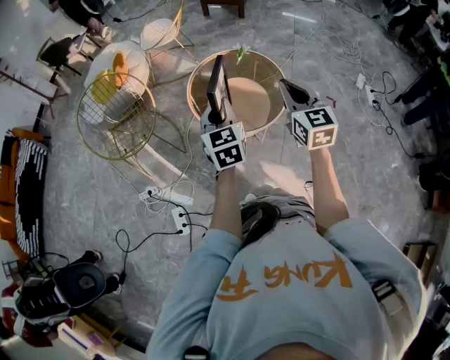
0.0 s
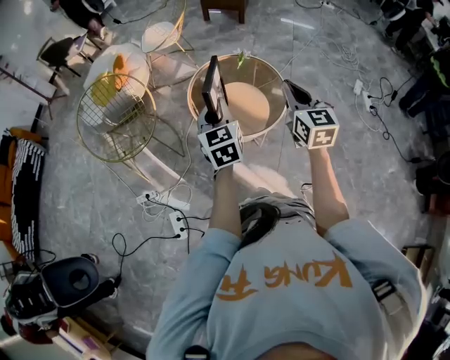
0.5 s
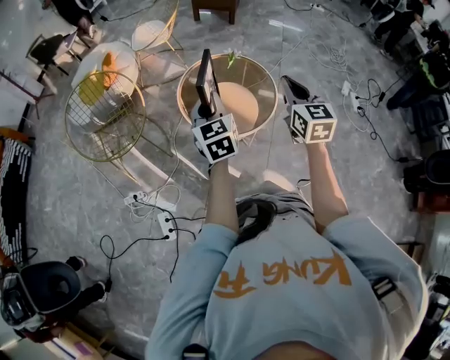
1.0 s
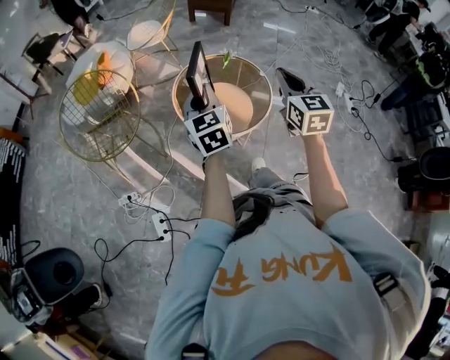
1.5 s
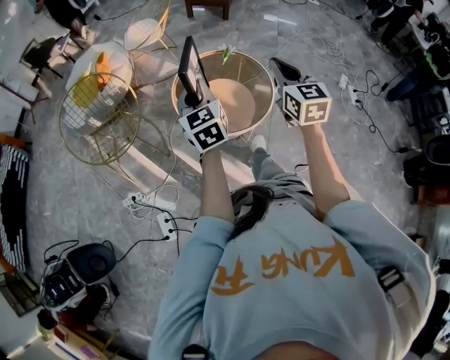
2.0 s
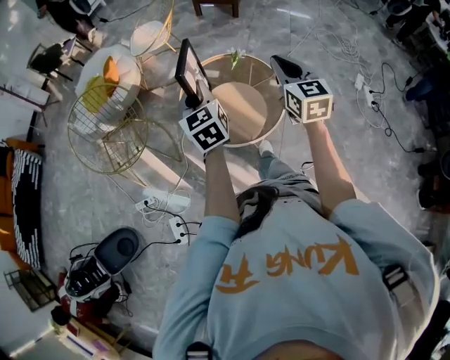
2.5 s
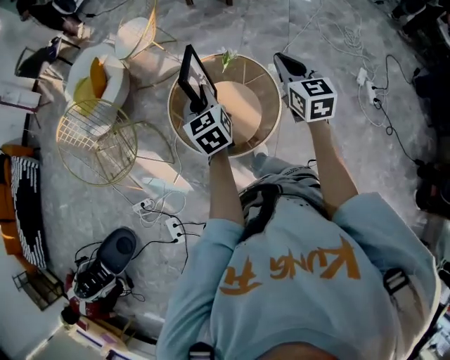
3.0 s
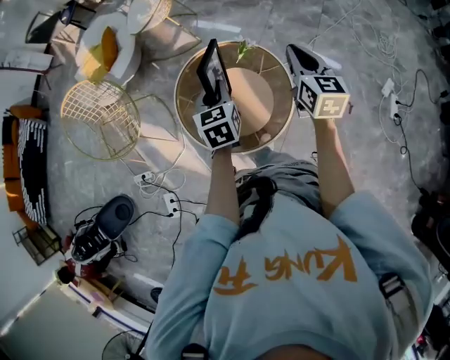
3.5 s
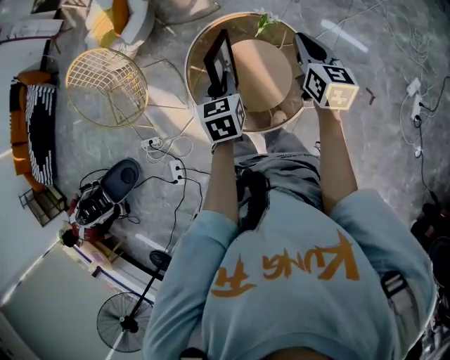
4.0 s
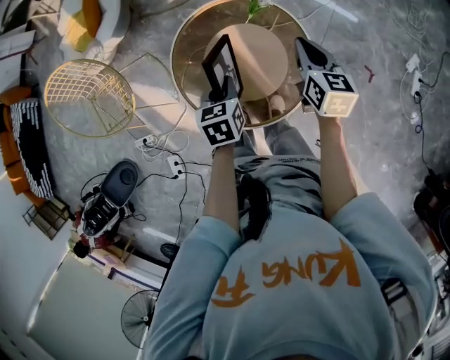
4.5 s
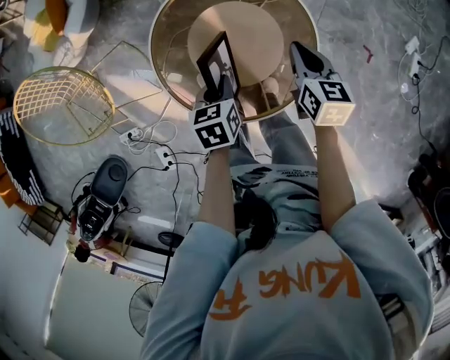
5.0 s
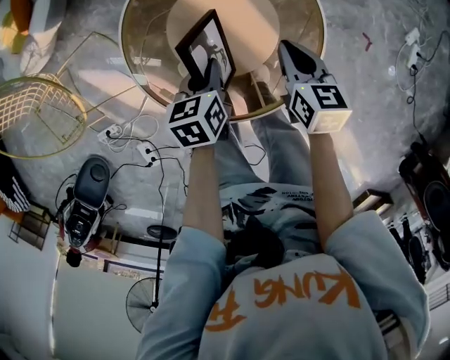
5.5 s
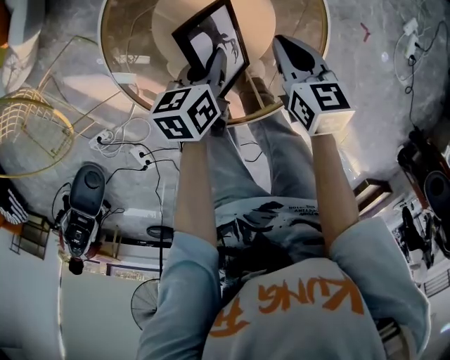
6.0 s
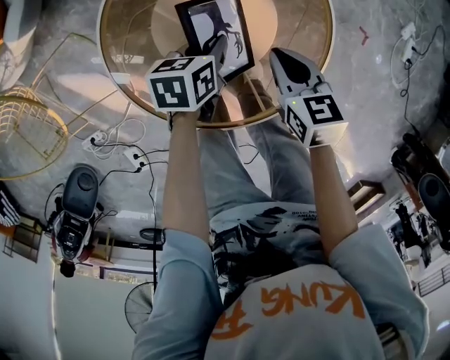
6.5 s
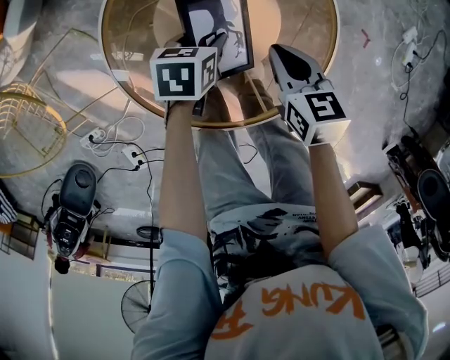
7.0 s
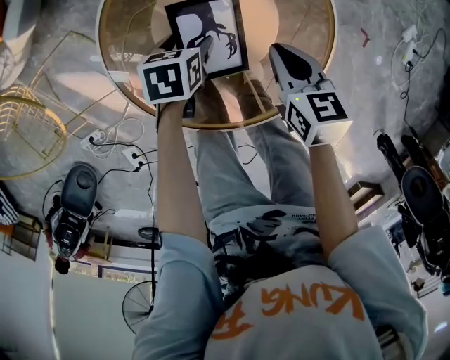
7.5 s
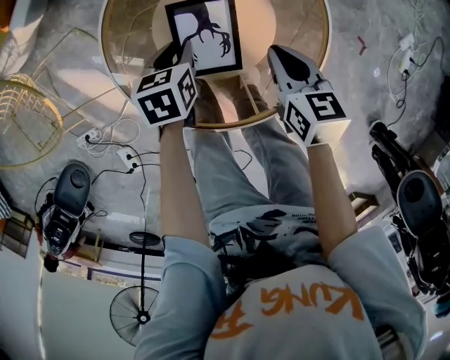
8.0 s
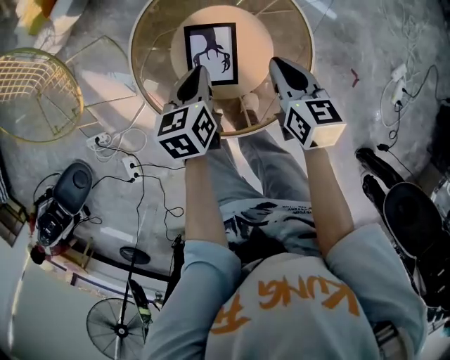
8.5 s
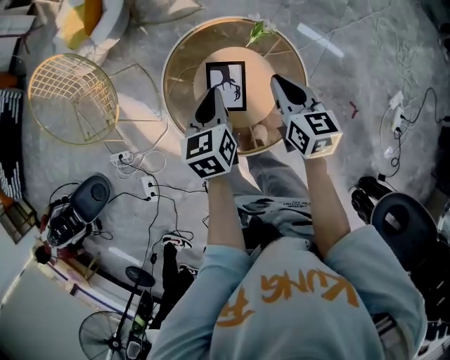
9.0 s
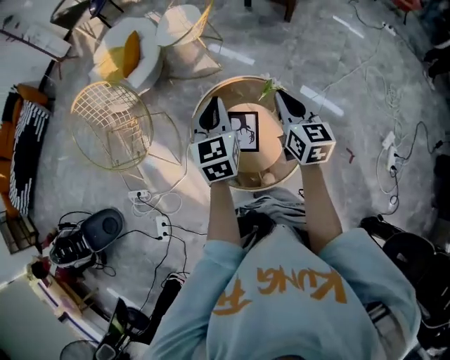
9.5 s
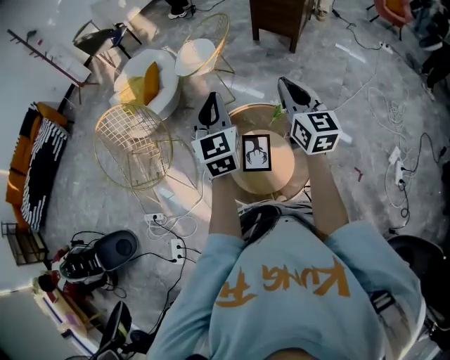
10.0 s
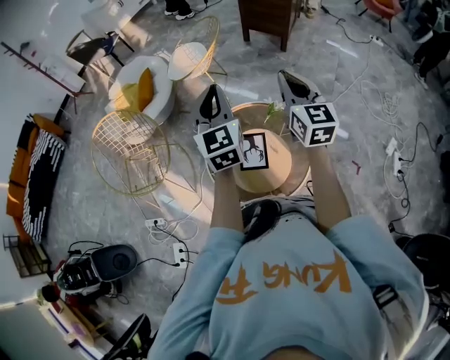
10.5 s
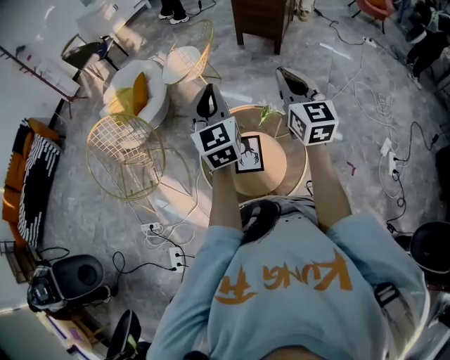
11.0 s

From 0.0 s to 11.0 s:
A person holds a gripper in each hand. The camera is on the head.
From 0.0 s to 2.0 s: The left gripper shifts by about 5 cm.
From 2.0 s to 3.5 s: The right gripper travels forward and to the right by about 35 cm. Meanwhile the left gripper moves forward, to the right and downward, some 35 cm, and rotates approximately 20 degrees.
From 3.5 s to 5.5 s: Both grippers travel together downward, about 35 cm. The left gripper turns by some 30 degrees. Meanwhile the right gripper swivels some 30 degrees.
From 5.5 s to 7.5 s: The left gripper shifts approximately 10 cm downward, and opens its fingers.
From 7.5 s to 9.0 s: The grippers both shift upward by some 30 cm. The right gripper turns by approximately 20 degrees; the left gripper turns by approximately 40 degrees, and closes its fingers.
From 9.0 s to 11.0 s: Both grippers move upward, some 30 cm. The right gripper swivels some 40 degrees, while the left gripper tilts its fingers about 30 degrees upward.

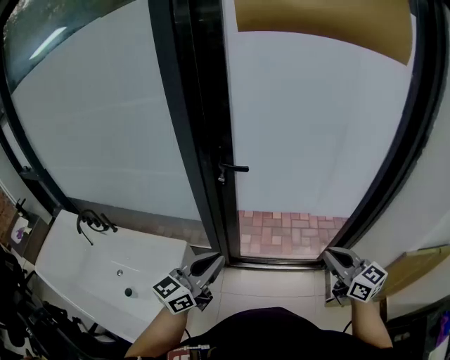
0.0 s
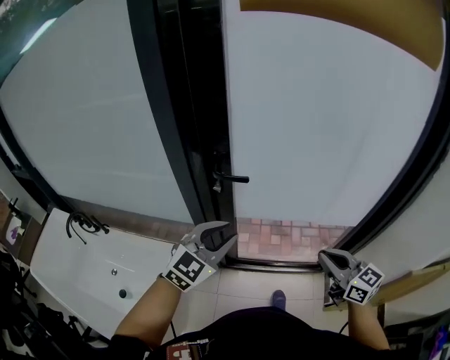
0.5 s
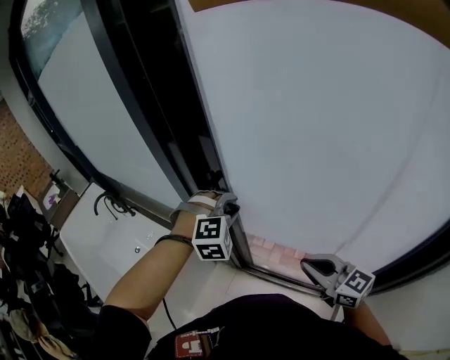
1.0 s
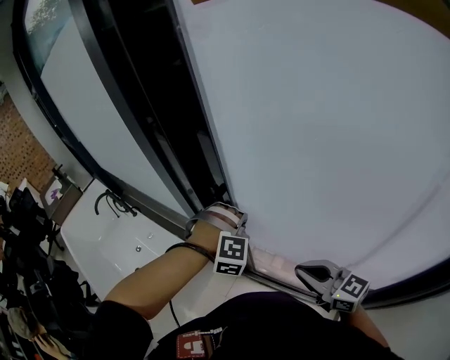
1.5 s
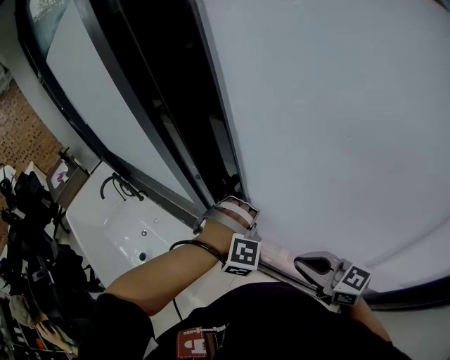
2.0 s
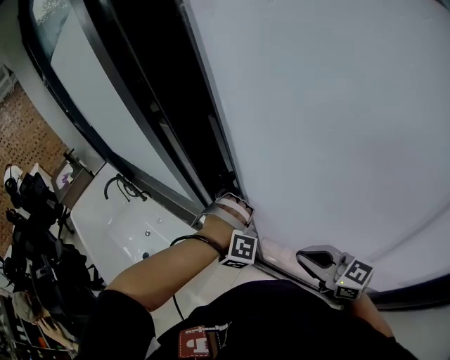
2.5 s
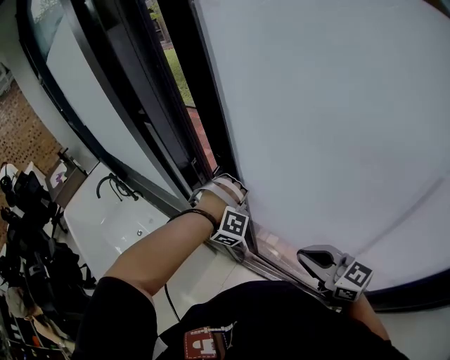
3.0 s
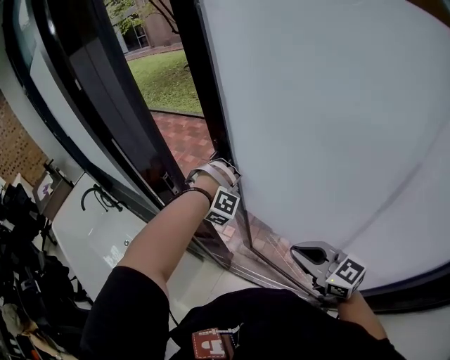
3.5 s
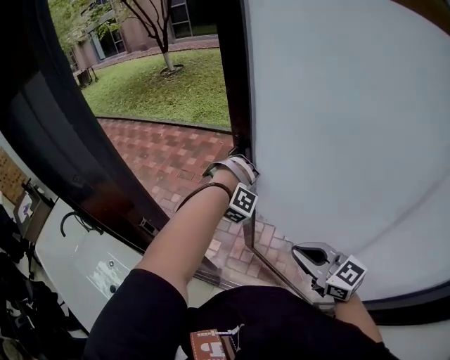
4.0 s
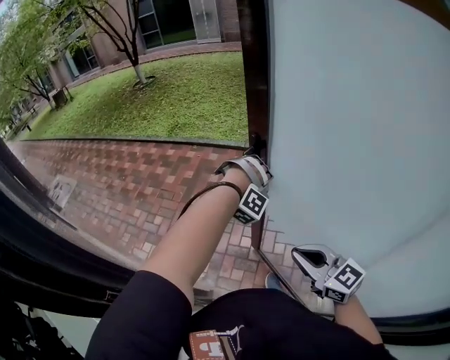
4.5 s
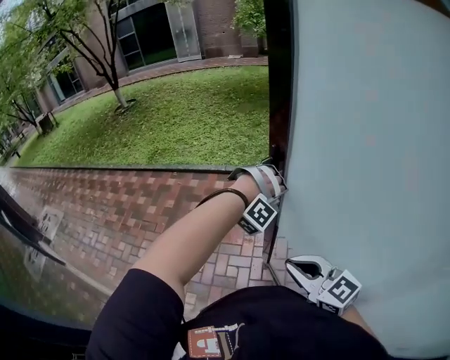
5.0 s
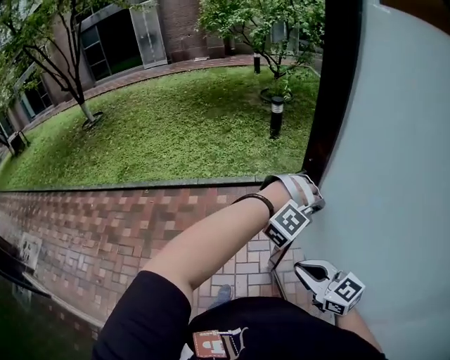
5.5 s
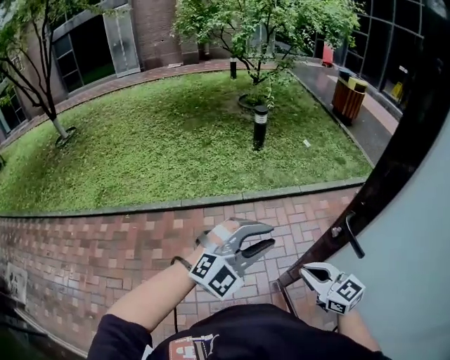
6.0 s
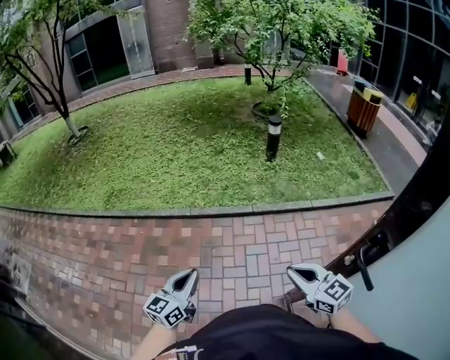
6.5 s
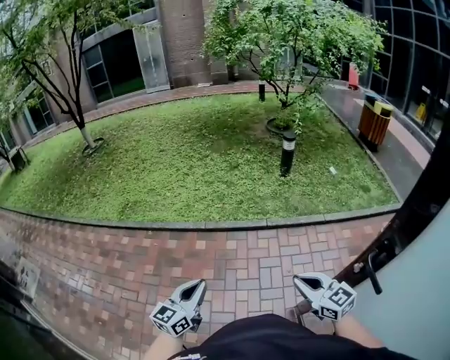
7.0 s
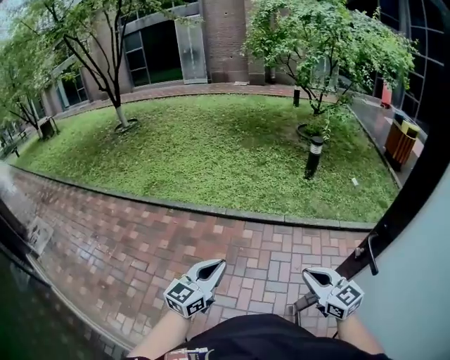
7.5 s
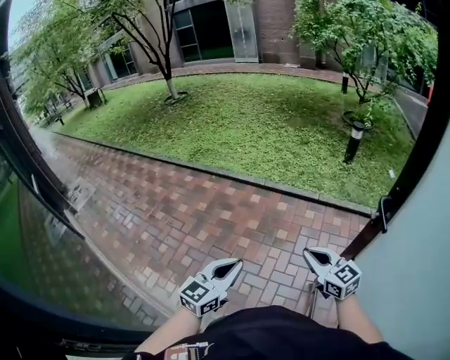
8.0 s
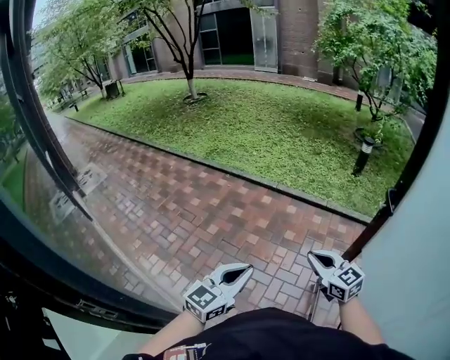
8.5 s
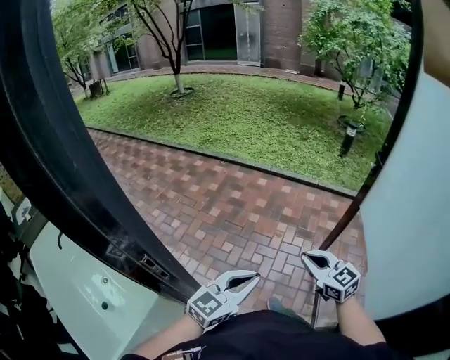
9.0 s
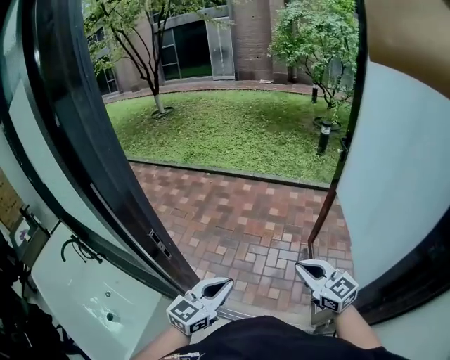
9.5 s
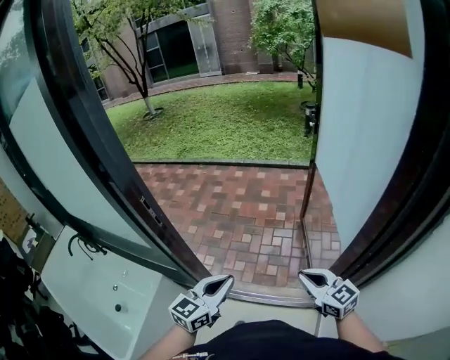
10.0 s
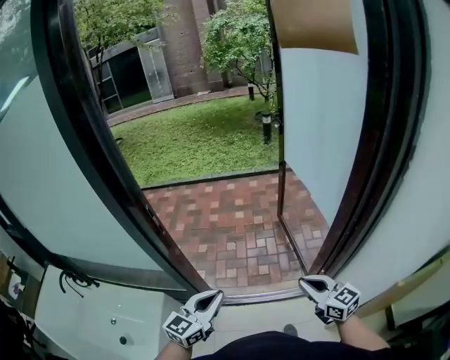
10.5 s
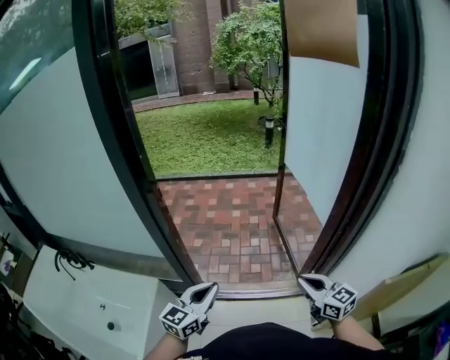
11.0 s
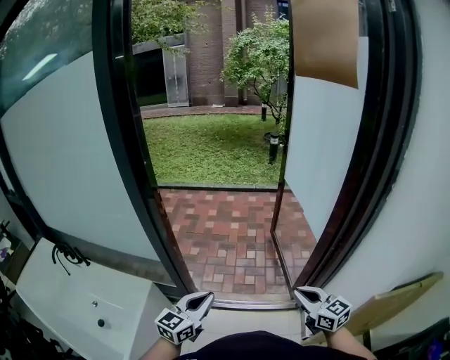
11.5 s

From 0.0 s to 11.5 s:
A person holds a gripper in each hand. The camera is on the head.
From 0.0 s to 2.0 s: The left gripper shifts by approximately 40 cm, points its fingers roughly 50 degrees further downward, and opens, then closes once more. Meanwhile the right gripper moves roughly 35 cm, and turns by some 50 degrees.
From 2.0 s to 4.0 s: The left gripper travels to the right and forward by about 30 cm, and turns by about 20 degrees. The right gripper goes about 20 cm to the right and forward.
From 4.0 s to 6.0 s: The pair of grippers is taken approximately 50 cm. The left gripper changes its angle by roughly 80 degrees, and opens up. The right gripper turns by roughly 40 degrees.
From 6.0 s to 7.5 s: The left gripper travels to the left by roughly 20 cm, rolls counterclockwise, seen from behind, by about 60 degrees, and closes up; the right gripper heads to the left, covering about 5 cm, and reaches roughly 10 cm forward, then returns.
From 7.5 s to 9.5 s: Both grippers are carried backward, roughly 60 cm.
From 9.5 s to 11.5 s: The two grippers go some 30 cm backward. The right gripper swivels roughly 20 degrees.

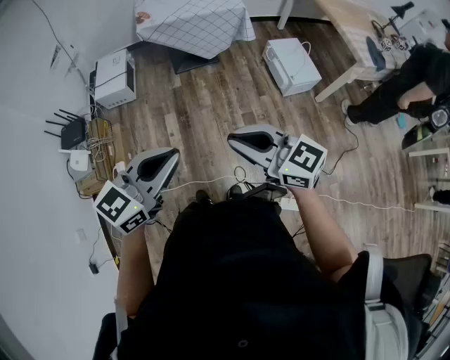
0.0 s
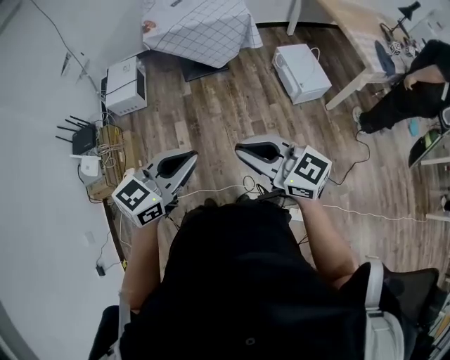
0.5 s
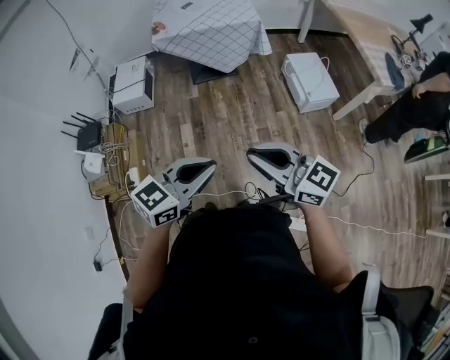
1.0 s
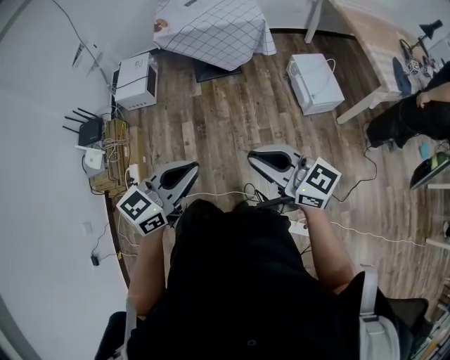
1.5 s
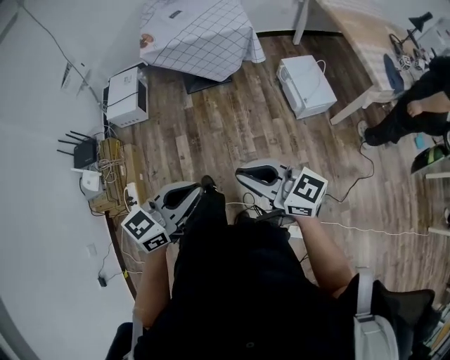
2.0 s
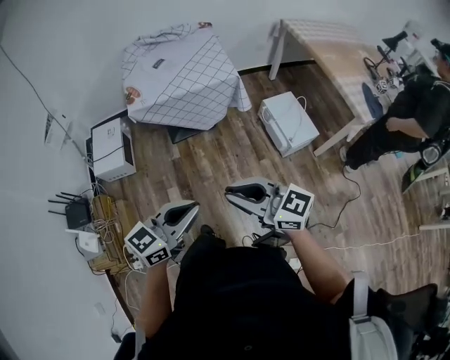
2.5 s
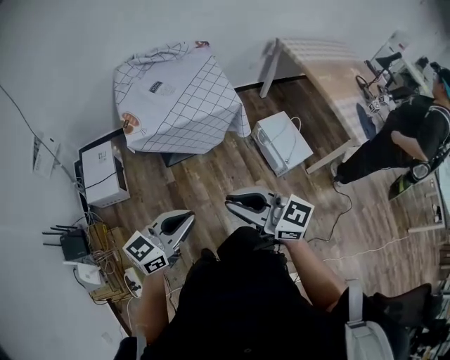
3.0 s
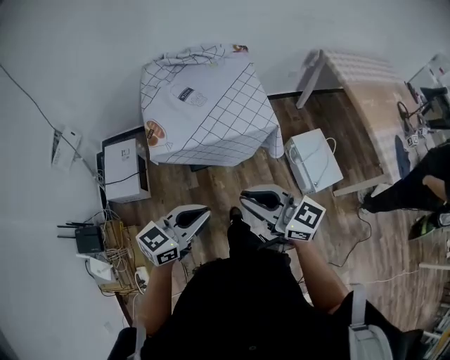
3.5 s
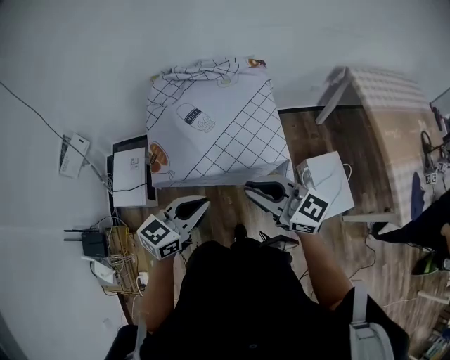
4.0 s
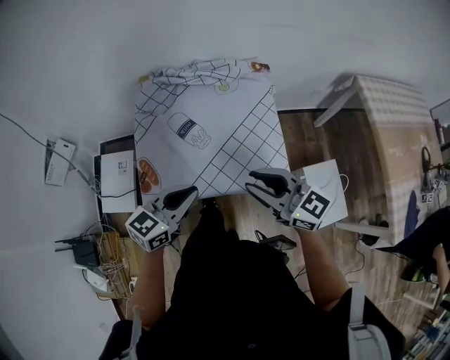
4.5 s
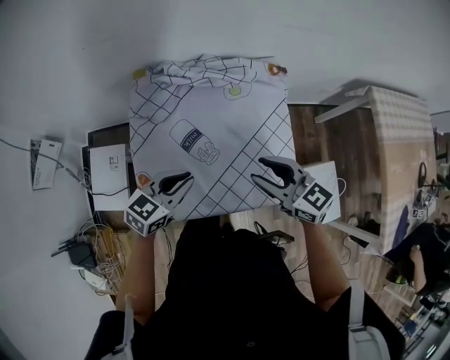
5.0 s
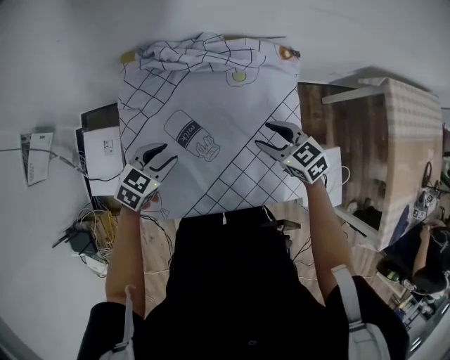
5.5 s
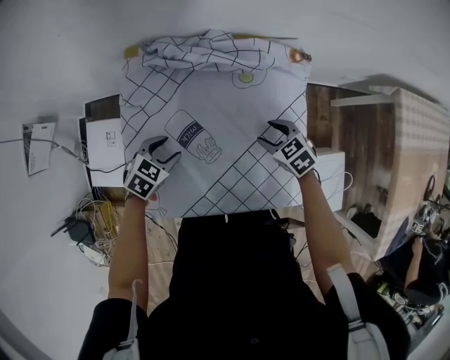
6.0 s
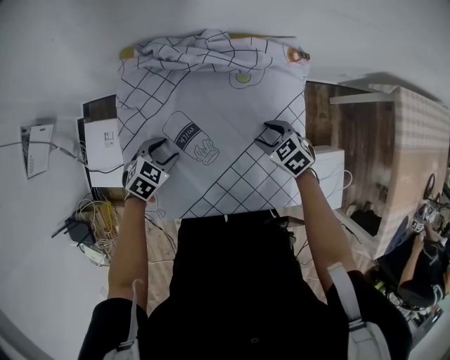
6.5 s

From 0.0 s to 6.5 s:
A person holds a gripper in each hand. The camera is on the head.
From 0.0 s to 2.0 s: The right gripper moves to the right and forward, some 10 cm, while the left gripper moves to the right, forward and downward, roughly 15 cm.
From 2.0 s to 4.5 s: The two grippers travel together, forward, some 80 cm.
From 4.5 s to 6.5 s: The two grippers go roughly 35 cm downward and forward. The left gripper points its fingers approximately 40 degrees further downward, and opens its fingers, while the right gripper angles its fingers downward, by about 50 degrees, and opens its fingers.
